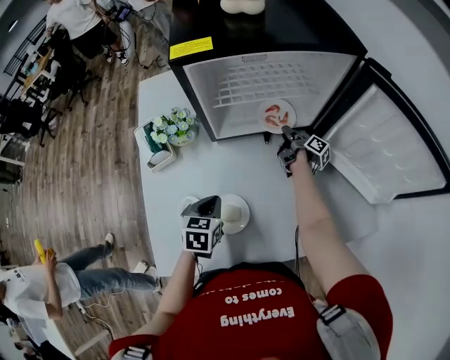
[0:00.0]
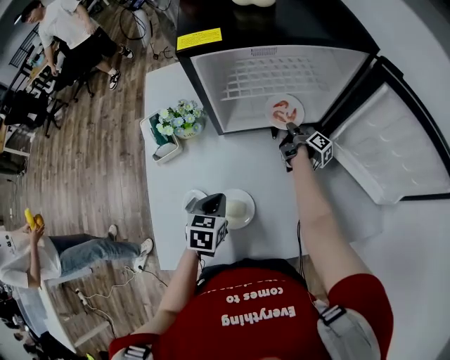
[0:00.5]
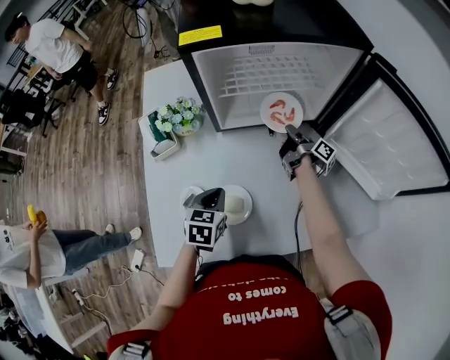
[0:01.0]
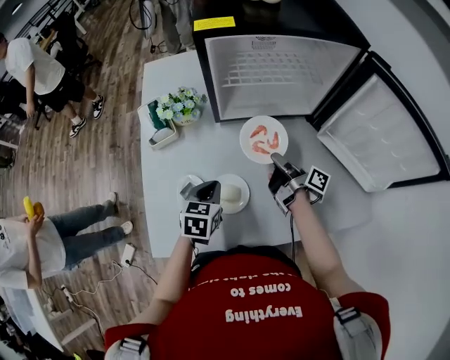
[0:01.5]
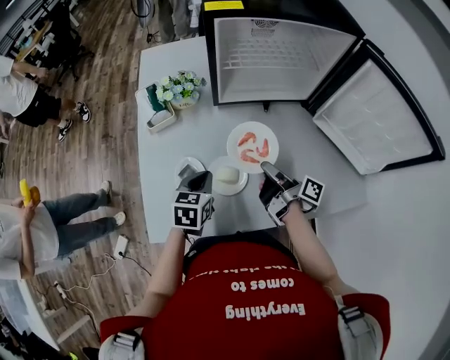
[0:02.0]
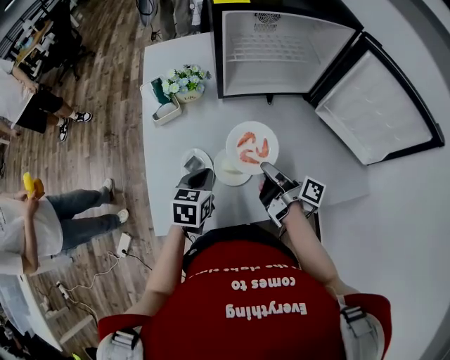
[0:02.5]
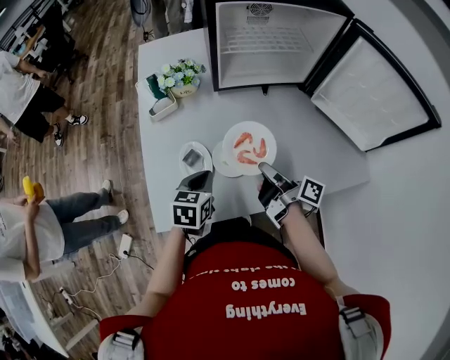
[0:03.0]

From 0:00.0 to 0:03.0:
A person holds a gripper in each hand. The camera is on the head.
From 0:01.5 to 0:03.0: The left gripper moves some 10 cm.

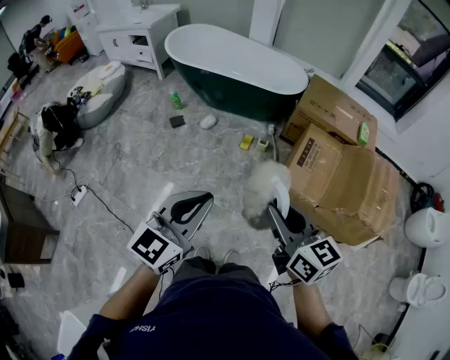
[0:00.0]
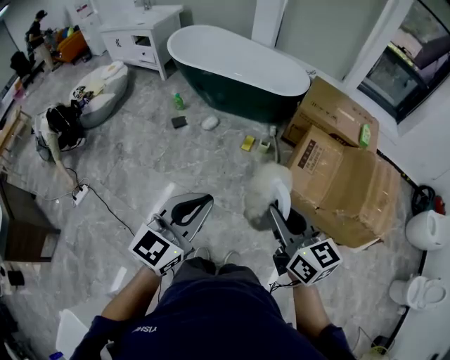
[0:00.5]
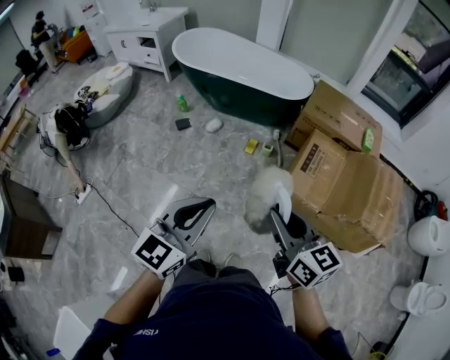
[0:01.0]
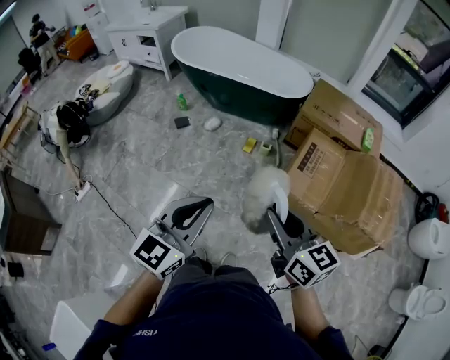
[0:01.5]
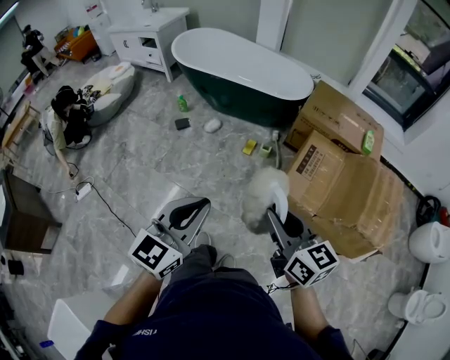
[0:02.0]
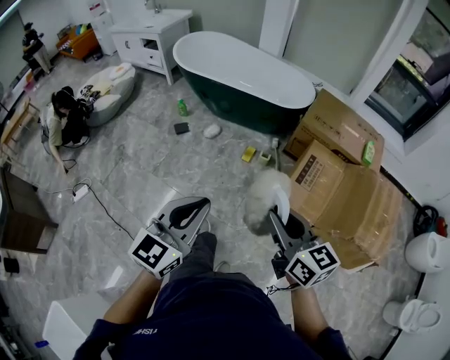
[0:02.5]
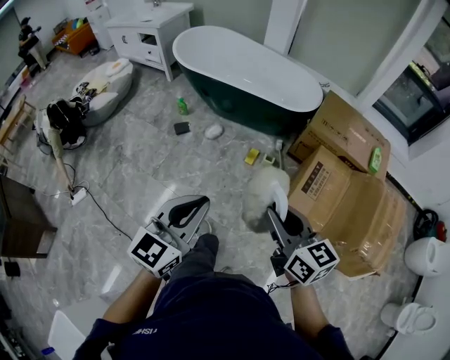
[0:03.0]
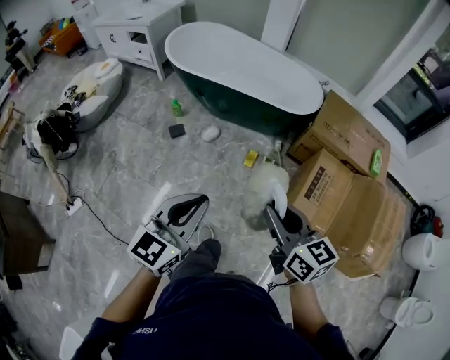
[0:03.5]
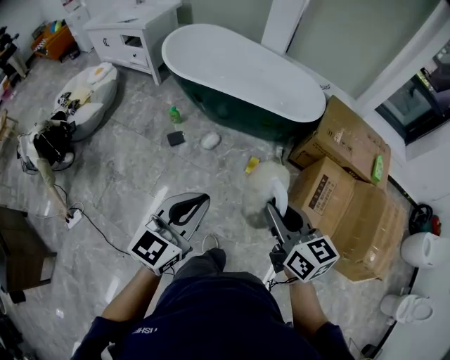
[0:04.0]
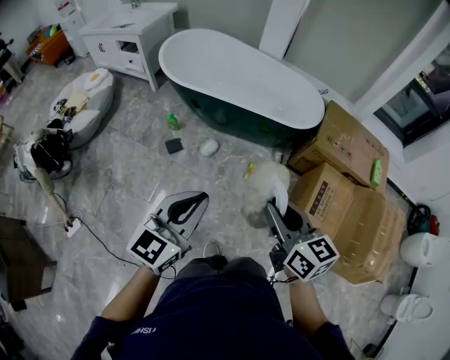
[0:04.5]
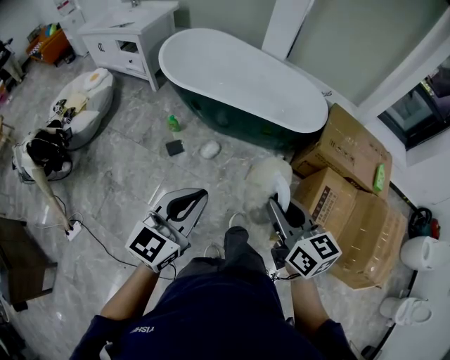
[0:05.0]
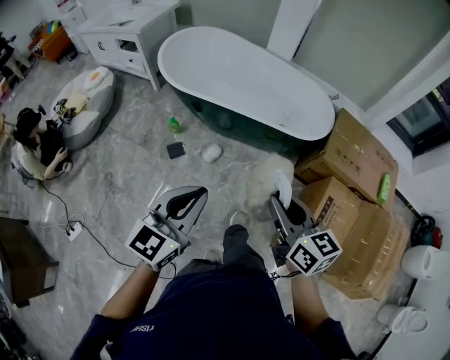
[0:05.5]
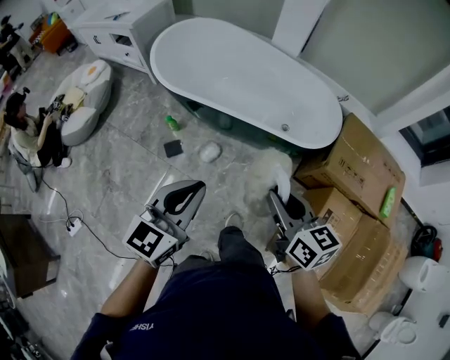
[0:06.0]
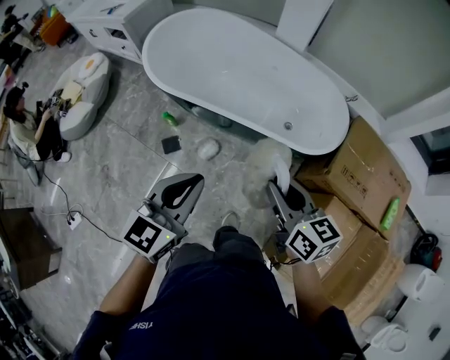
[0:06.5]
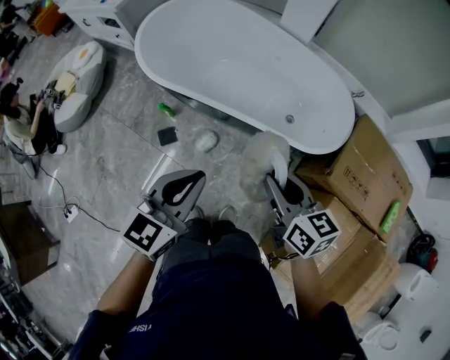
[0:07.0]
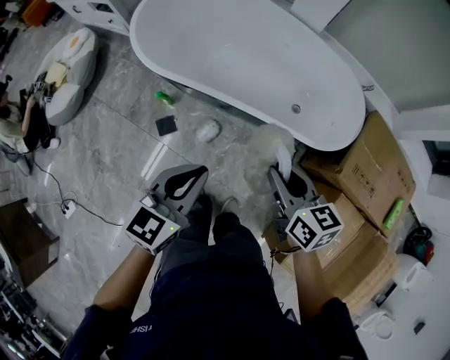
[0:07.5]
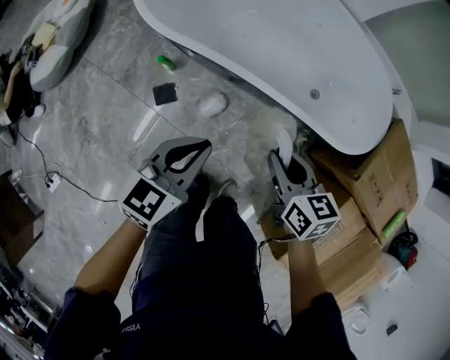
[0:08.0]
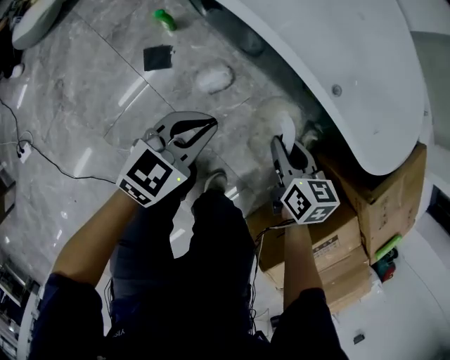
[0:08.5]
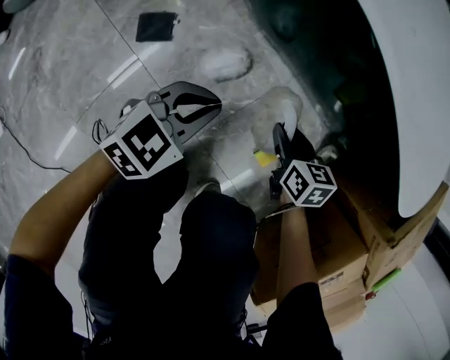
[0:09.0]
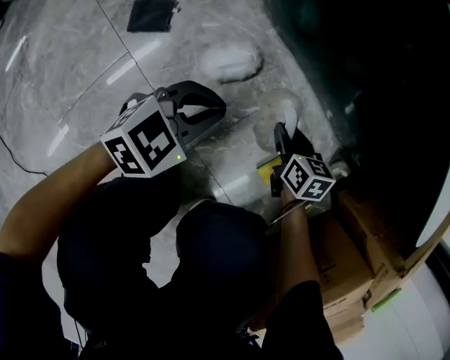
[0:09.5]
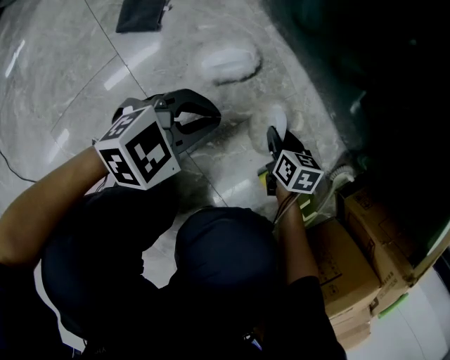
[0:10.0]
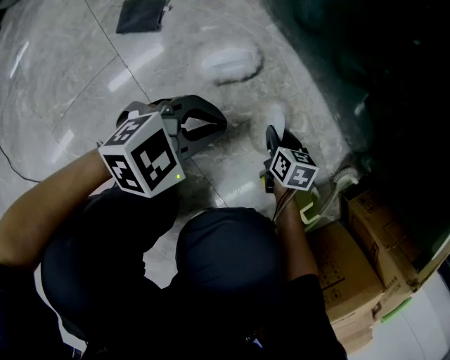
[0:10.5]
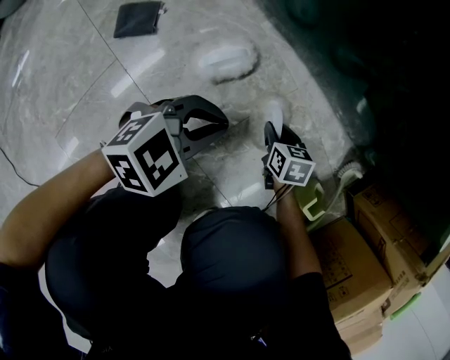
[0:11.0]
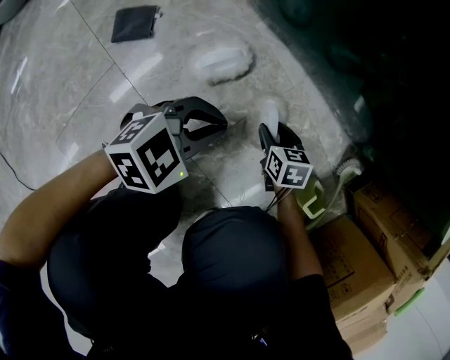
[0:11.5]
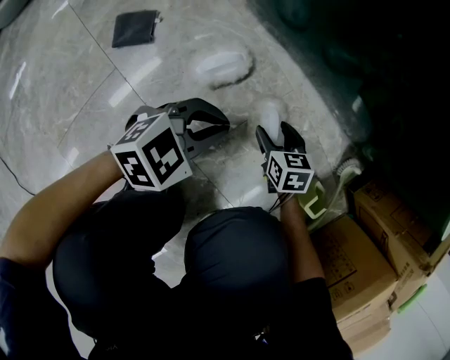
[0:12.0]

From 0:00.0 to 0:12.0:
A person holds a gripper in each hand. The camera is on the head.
From 0:00.0 to 0:02.0: Both grippers travel together to the right, some 5 cm.
From 0:02.0 to 0:04.0: The two grippers go roughly 35 cm forward and to the left.
From 0:04.0 to 0:06.0: Both grippers move forward, about 30 cm.
From 0:06.0 to 0:08.0: The two grippers go approximately 35 cm downward and forward.
From 0:08.0 to 0:10.0: The grippers both shift downward by roughly 60 cm. The left gripper turns by approximately 30 degrees. The right gripper changes its angle by approximately 20 degrees.
From 0:10.0 to 0:12.0: The right gripper opens its fingers.

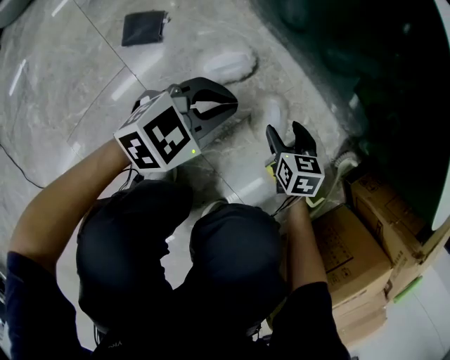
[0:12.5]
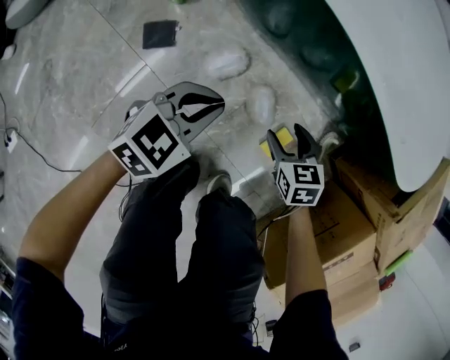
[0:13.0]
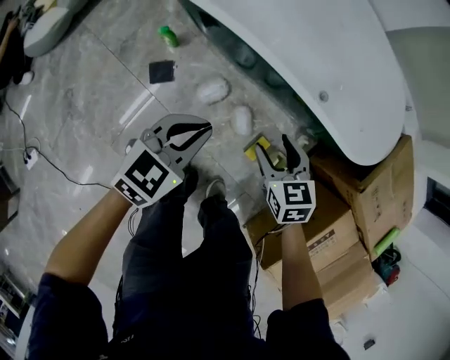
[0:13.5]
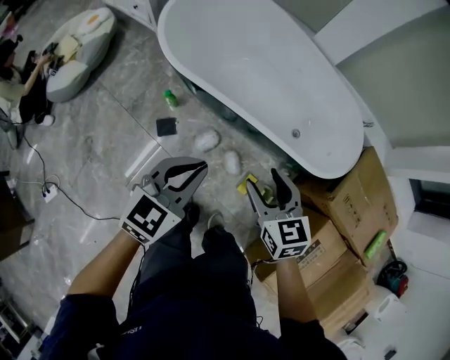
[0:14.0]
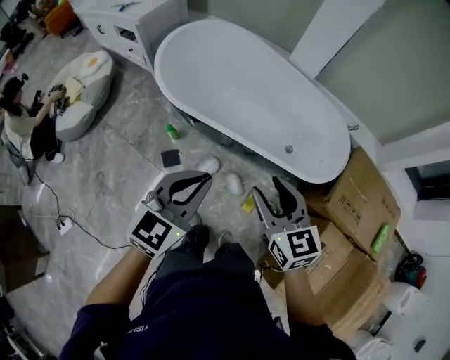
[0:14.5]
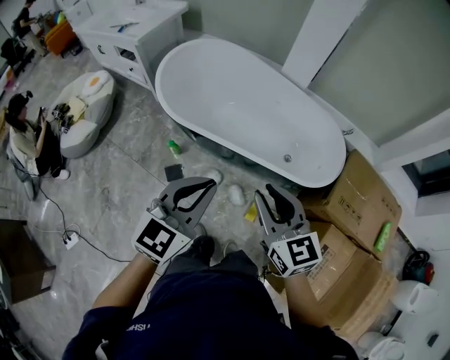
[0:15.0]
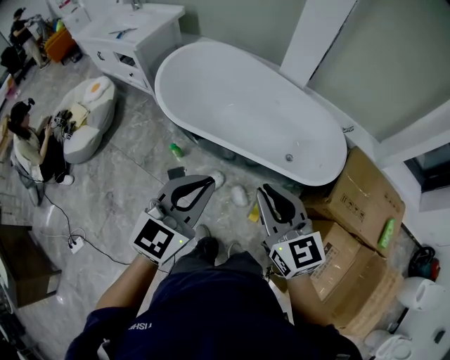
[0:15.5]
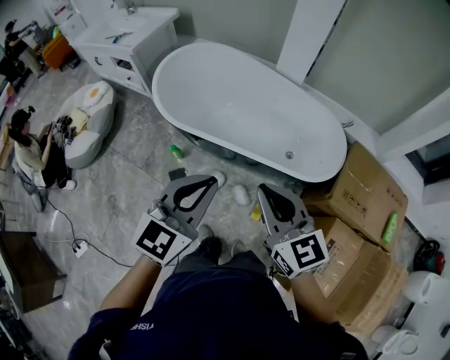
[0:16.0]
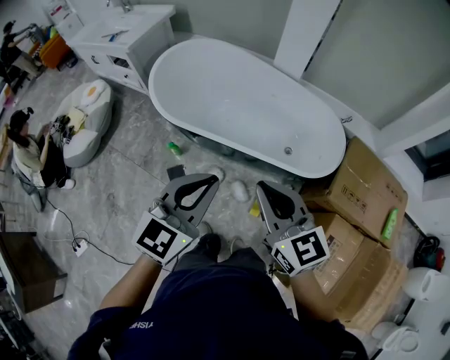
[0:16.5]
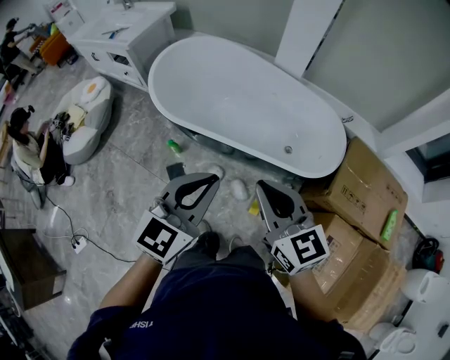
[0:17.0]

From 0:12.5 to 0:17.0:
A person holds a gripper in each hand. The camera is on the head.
From 0:12.5 to 0:14.5: Both grippers move upward, about 80 cm. The right gripper tips its fingers upward by approximately 30 degrees; the left gripper swivels some 20 degrees.
From 0:14.5 to 0:17.0: The right gripper moves upward, approximately 10 cm, and closes. Meanwhile the left gripper moves upward and to the right, roughly 10 cm.

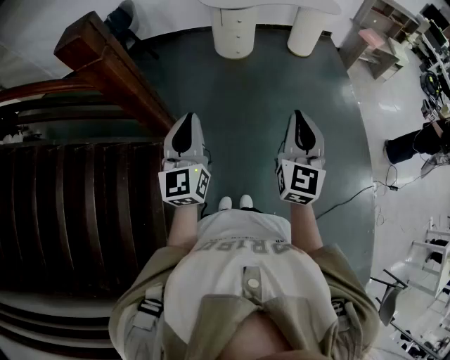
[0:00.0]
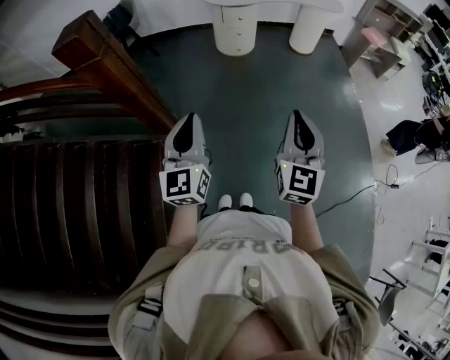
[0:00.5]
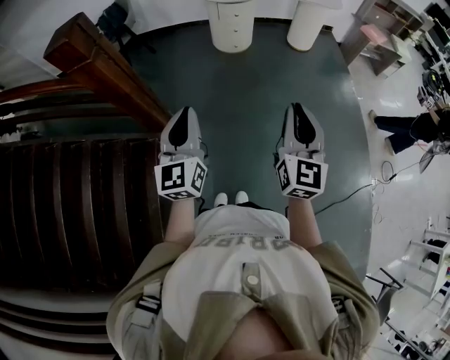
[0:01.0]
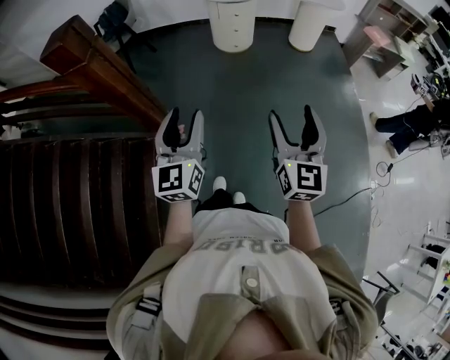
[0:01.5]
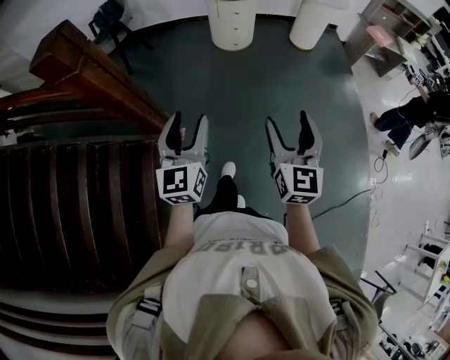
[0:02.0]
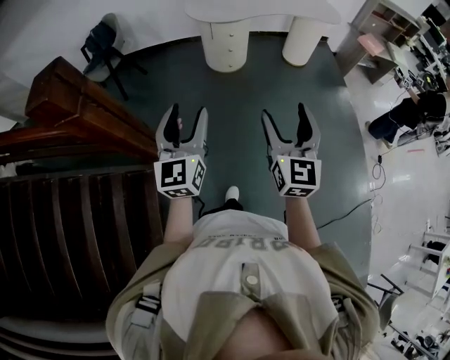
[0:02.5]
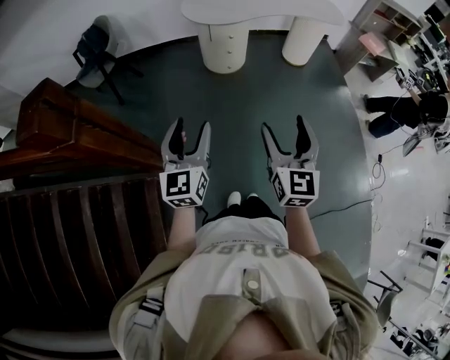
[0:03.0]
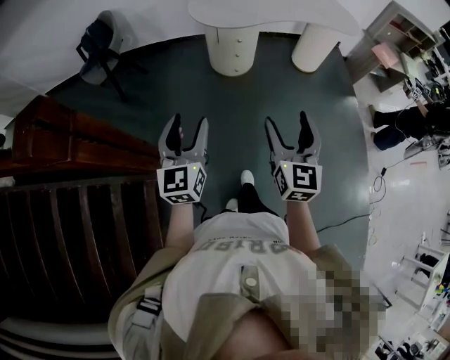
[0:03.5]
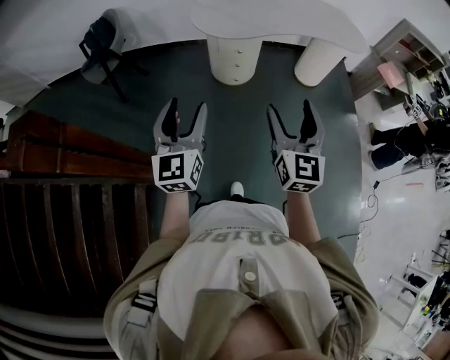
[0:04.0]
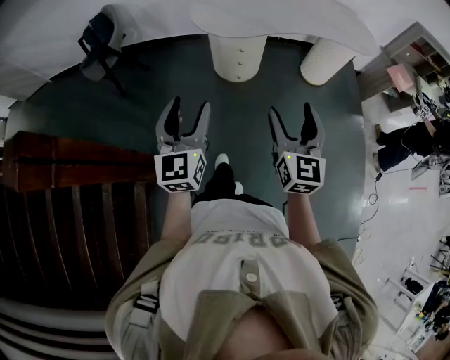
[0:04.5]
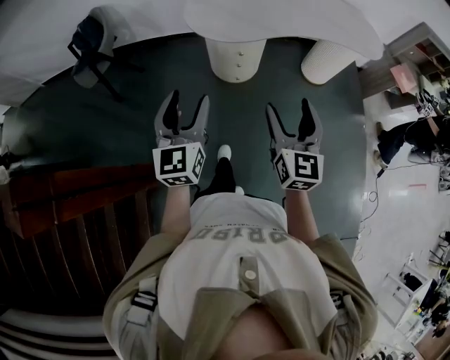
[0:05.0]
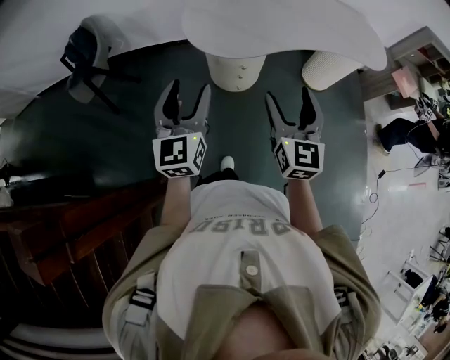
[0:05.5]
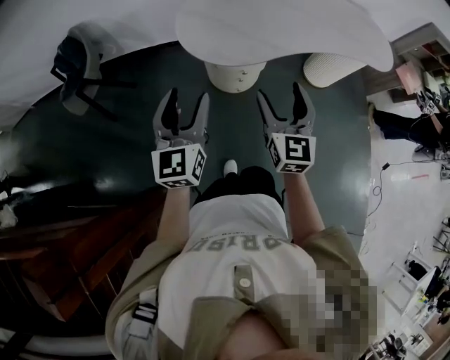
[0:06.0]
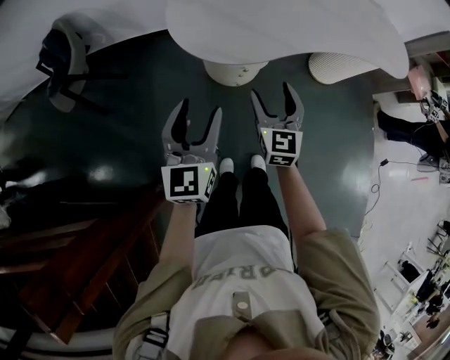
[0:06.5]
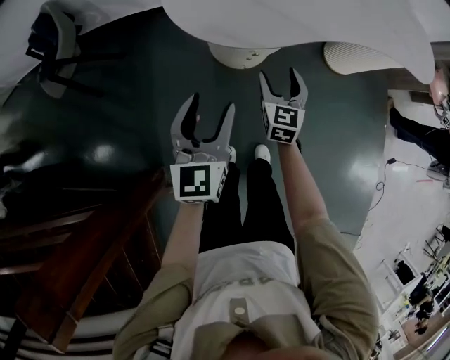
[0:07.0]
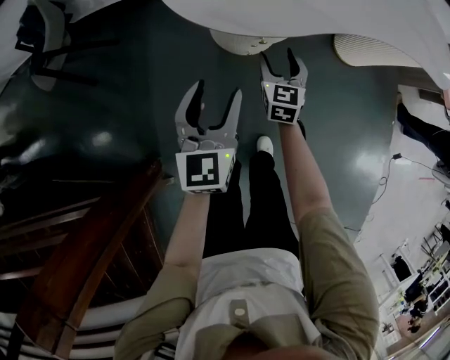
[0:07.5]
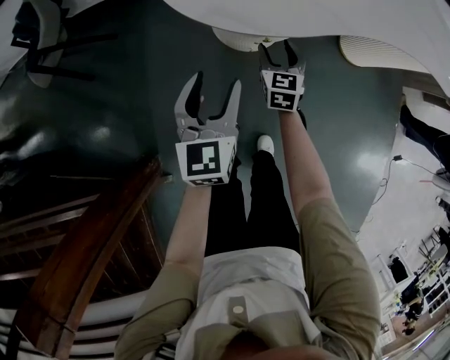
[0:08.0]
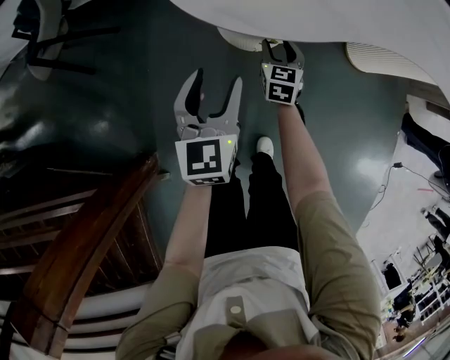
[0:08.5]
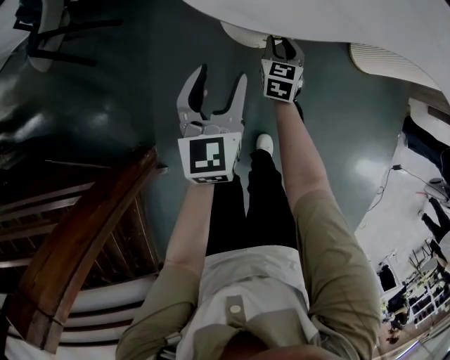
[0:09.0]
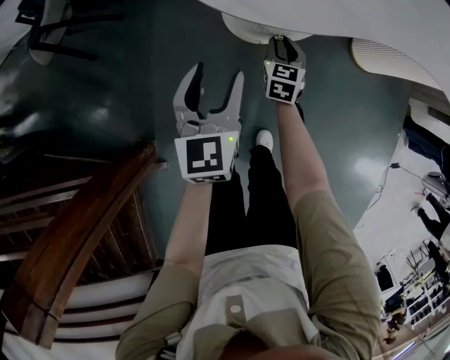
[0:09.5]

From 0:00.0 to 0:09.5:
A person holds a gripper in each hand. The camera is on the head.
From 0:00.0 to 0:02.0: The two grippers go approximately 10 cm forward. The right gripper opens. Meanwhile the left gripper opens up.
From 0:02.0 to 0:04.0: The two grippers go some 35 cm forward.
From 0:04.0 to 0:05.5: Both grippers travel together forward, roughly 30 cm.
From 0:05.5 to 0:07.5: The left gripper moves downward and forward, about 30 cm. The right gripper shifts about 50 cm downward and forward, and changes its angle by some 20 degrees.
From 0:07.5 to 0:09.5: The right gripper is displaced downward by some 10 cm, and closes its fingers. The left gripper changes place by about 5 cm.
